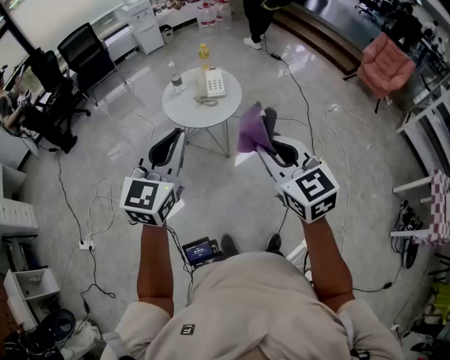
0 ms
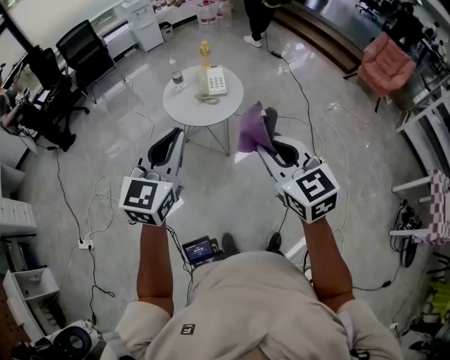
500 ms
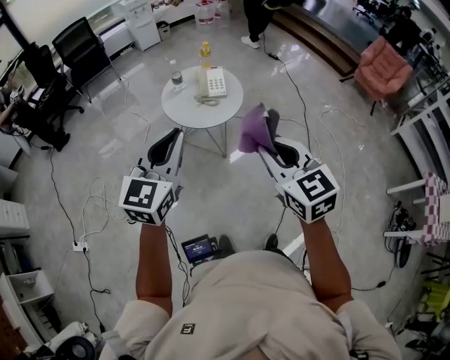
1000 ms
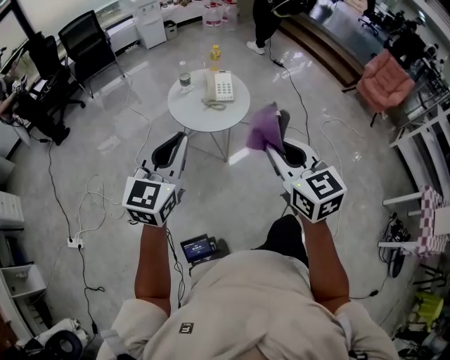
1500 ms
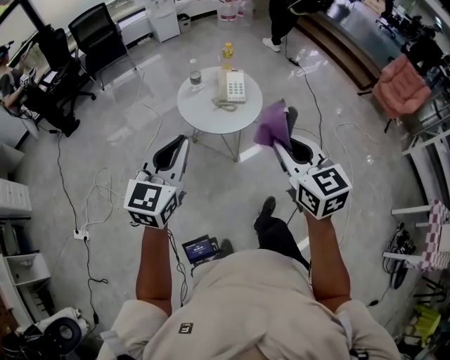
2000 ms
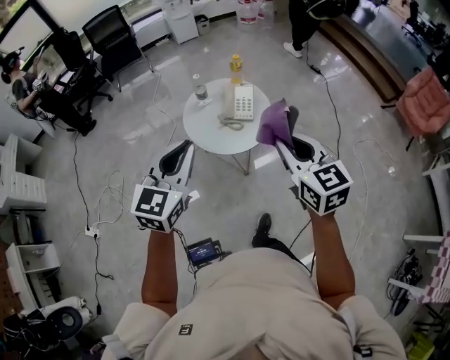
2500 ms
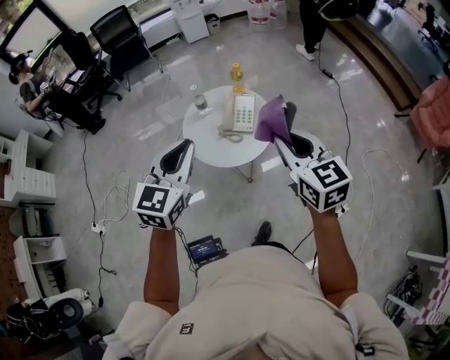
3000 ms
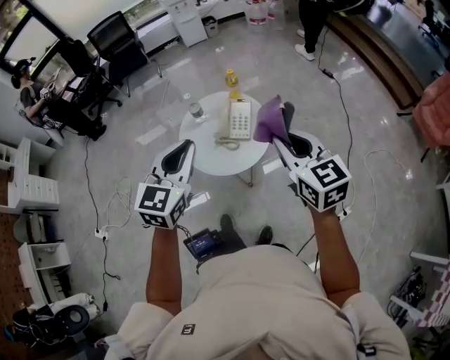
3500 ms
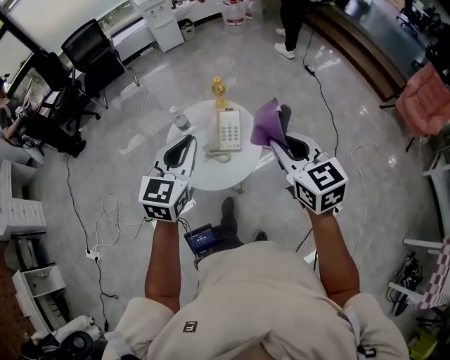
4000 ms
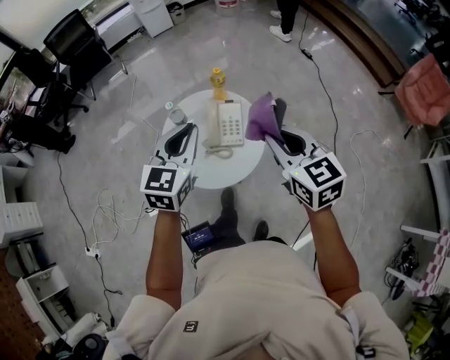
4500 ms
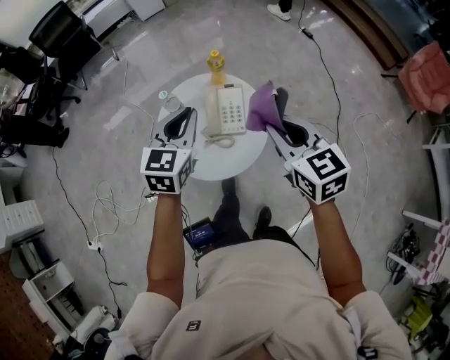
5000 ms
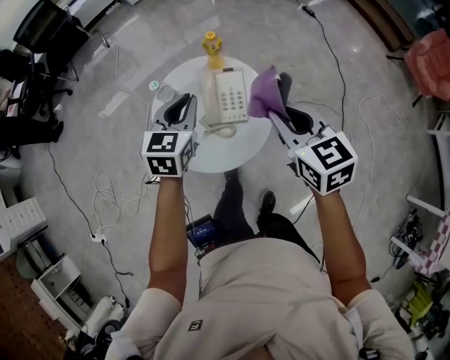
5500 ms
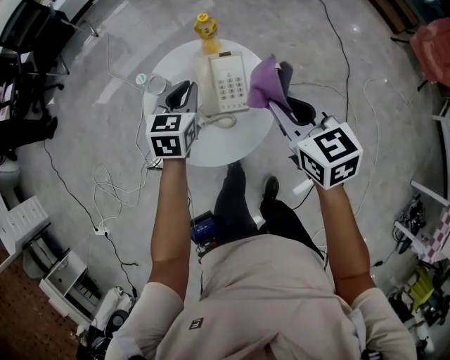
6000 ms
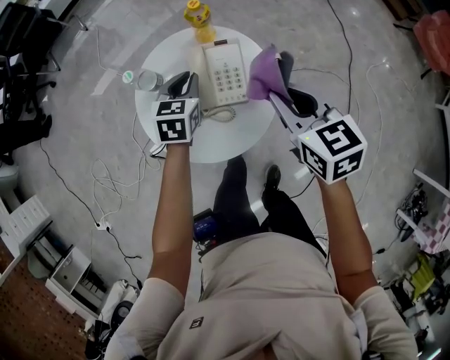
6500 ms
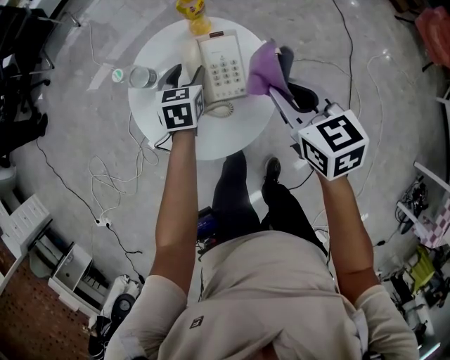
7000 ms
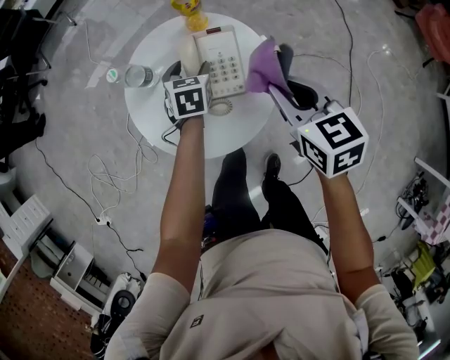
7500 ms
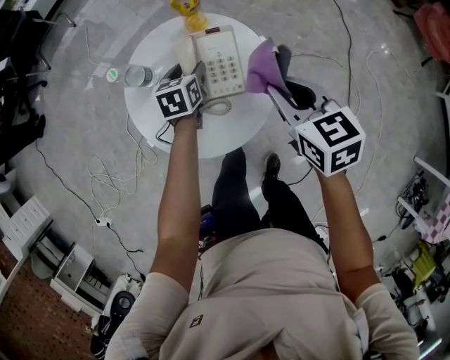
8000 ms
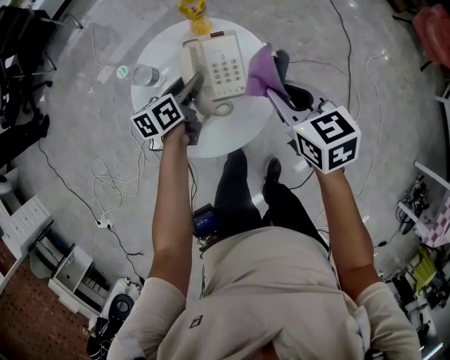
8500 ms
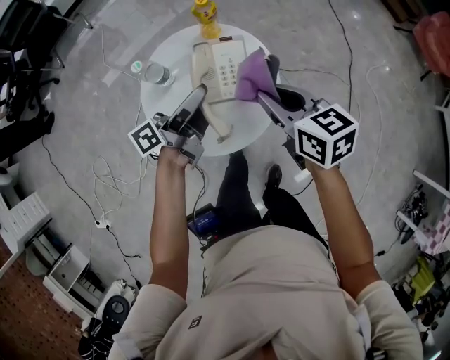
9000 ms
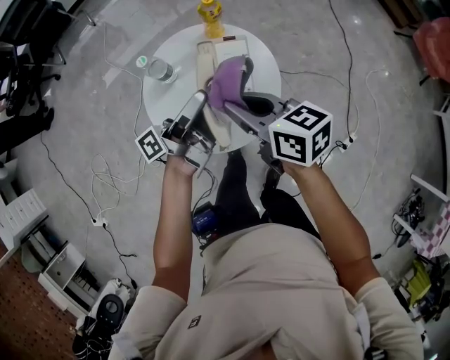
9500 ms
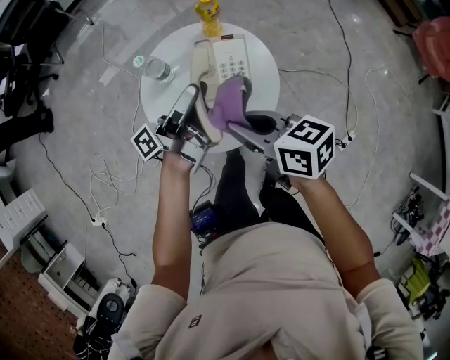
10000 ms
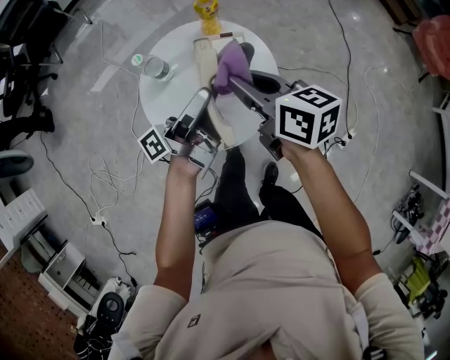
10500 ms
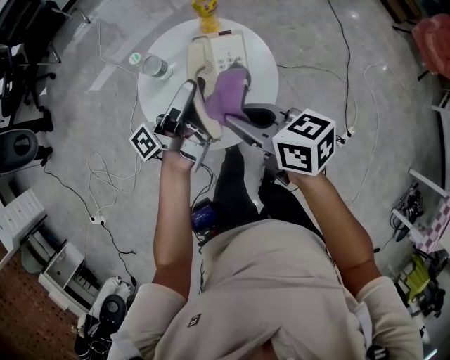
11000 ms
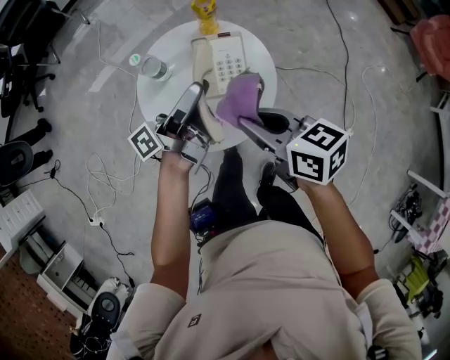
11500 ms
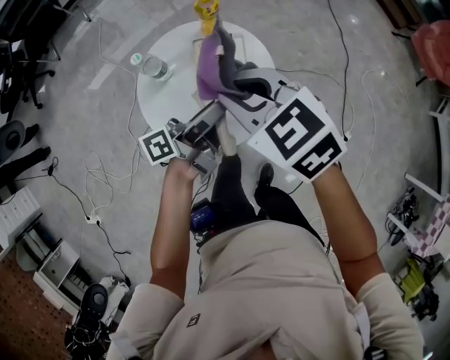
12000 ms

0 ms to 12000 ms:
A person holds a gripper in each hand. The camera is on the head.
0 ms to 2000 ms: The right gripper shifts some 10 cm forward, while the left gripper heads forward and to the left, covering about 10 cm.
2000 ms to 4000 ms: The two grippers go some 35 cm forward and to the right.
4000 ms to 6000 ms: The two grippers go approximately 25 cm downward and forward. The left gripper swivels some 20 degrees.
6000 ms to 8000 ms: The right gripper travels downward by approximately 10 cm, while the left gripper moves downward, about 15 cm, and opens.
8000 ms to 10000 ms: The right gripper travels to the left and backward by approximately 15 cm, and turns by roughly 30 degrees. The left gripper shifts roughly 20 cm upward and backward, and tilts its fingers roughly 70 degrees upward.
10000 ms to 12000 ms: The left gripper goes approximately 5 cm backward. Meanwhile the right gripper goes forward and backward, approximately 10 cm each way, reversing 2 times, and rotates some 40 degrees.

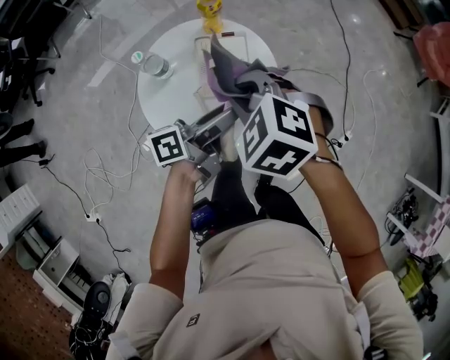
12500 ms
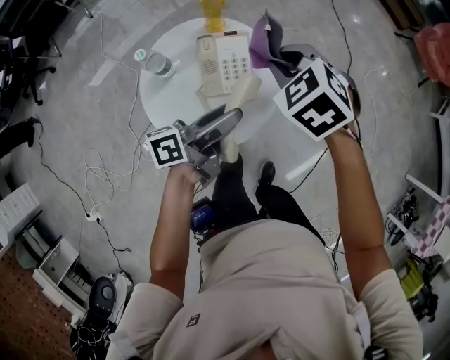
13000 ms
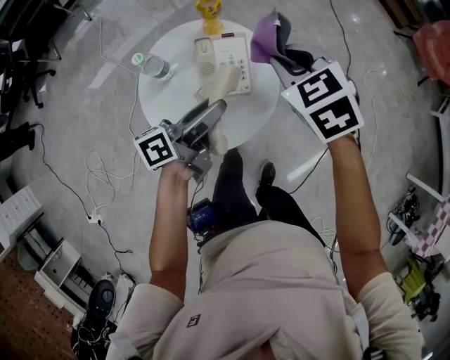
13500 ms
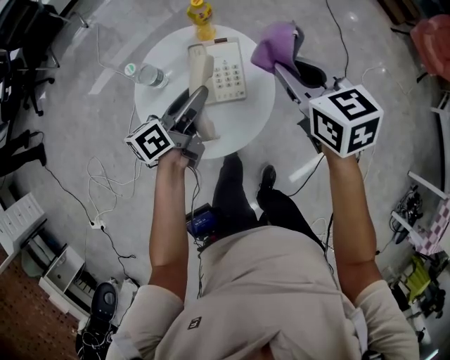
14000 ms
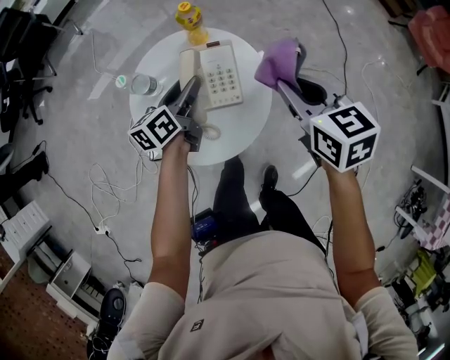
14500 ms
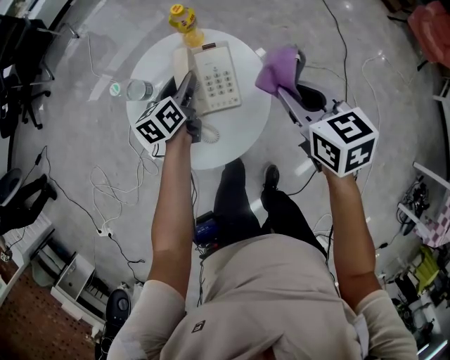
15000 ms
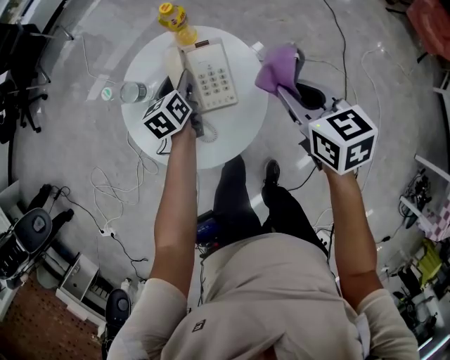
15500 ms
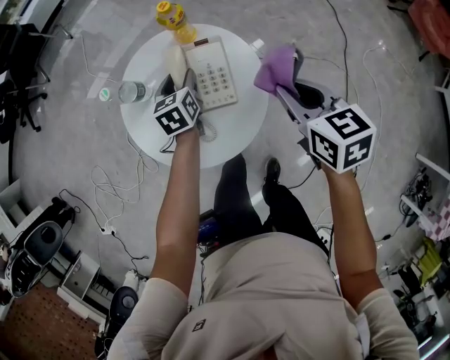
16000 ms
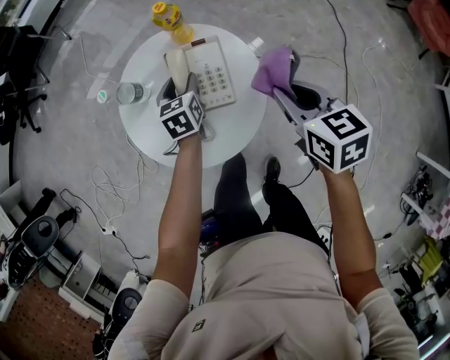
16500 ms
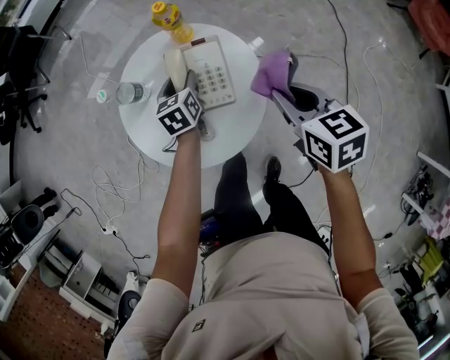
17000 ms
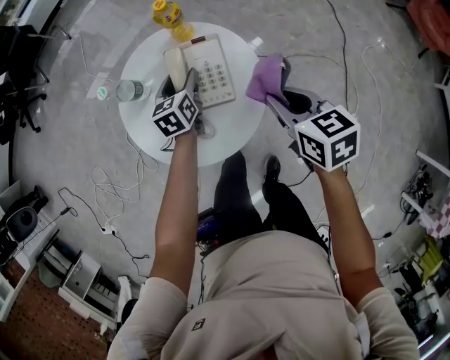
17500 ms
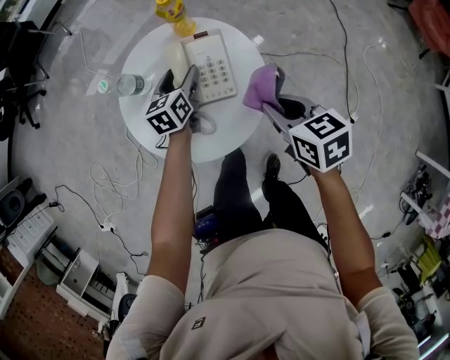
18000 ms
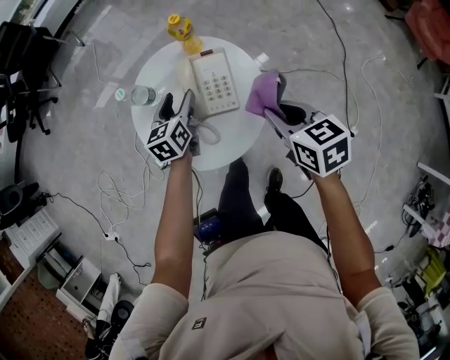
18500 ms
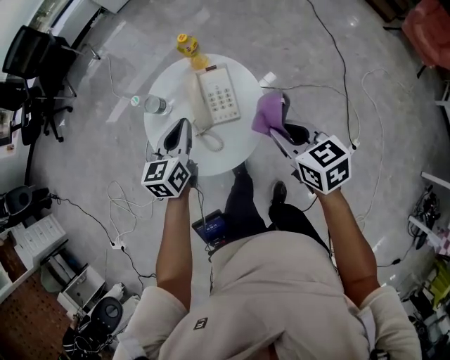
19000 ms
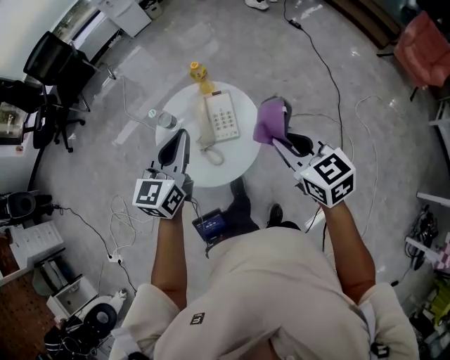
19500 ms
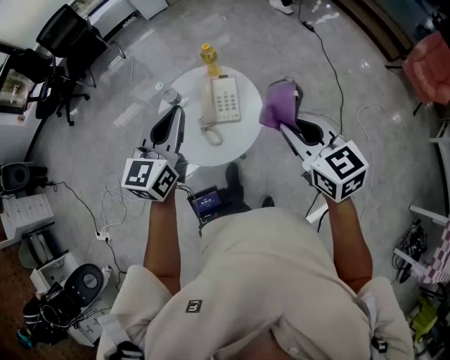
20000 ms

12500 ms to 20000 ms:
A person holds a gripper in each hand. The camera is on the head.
12500 ms to 14500 ms: The left gripper moves forward, downward and to the left, roughly 15 cm, and rotates approximately 40 degrees, while the right gripper travels to the right and forward by roughly 15 cm, and rotates around the line of its fingers by approximately 50 degrees, clockwise from behind.
14500 ms to 16500 ms: The two grippers go roughly 5 cm downward. The left gripper turns by about 40 degrees.
16500 ms to 18000 ms: The right gripper moves roughly 5 cm.
18000 ms to 20000 ms: The left gripper shifts approximately 40 cm upward and backward, rotates approximately 40 degrees, and closes its fingers, while the right gripper goes approximately 25 cm upward, and swivels about 30 degrees.

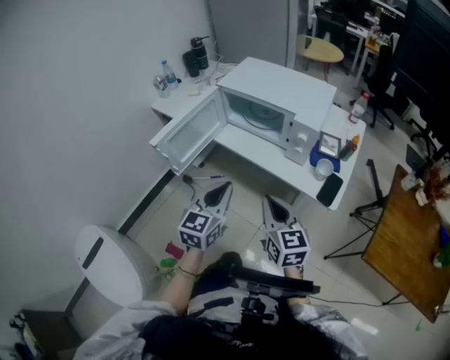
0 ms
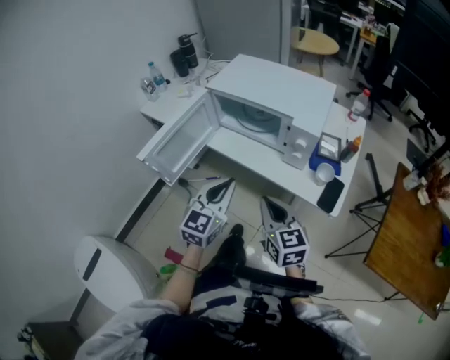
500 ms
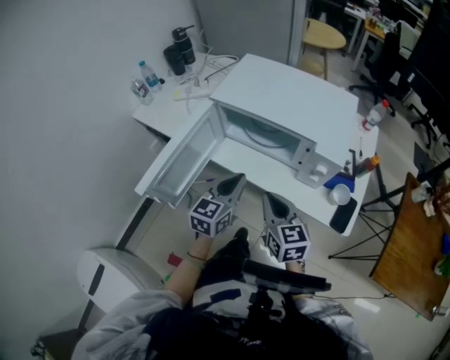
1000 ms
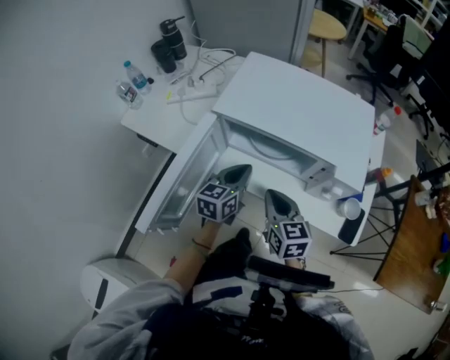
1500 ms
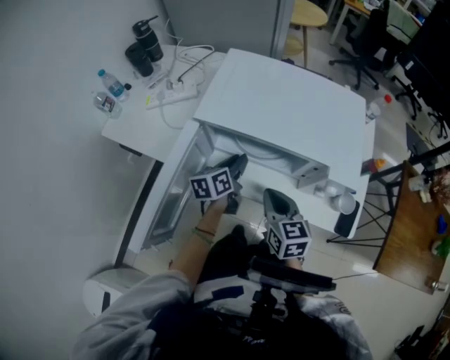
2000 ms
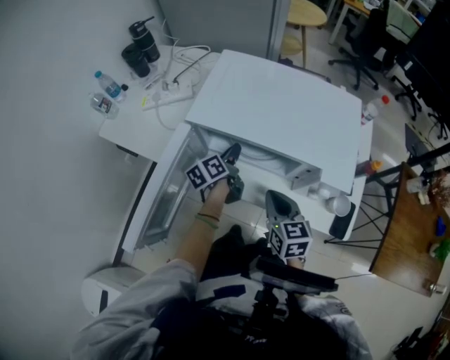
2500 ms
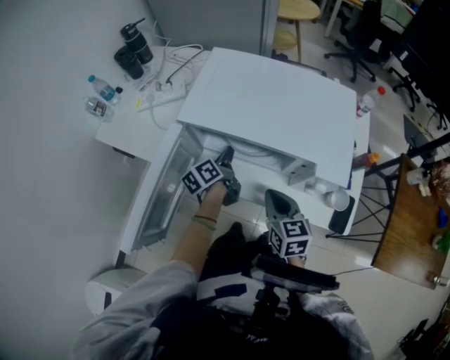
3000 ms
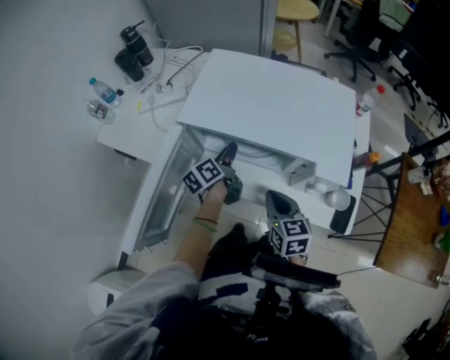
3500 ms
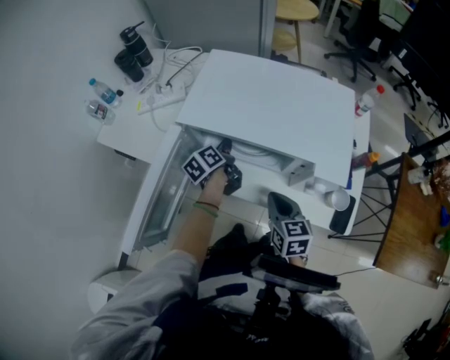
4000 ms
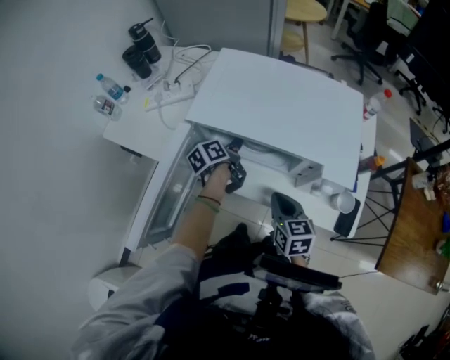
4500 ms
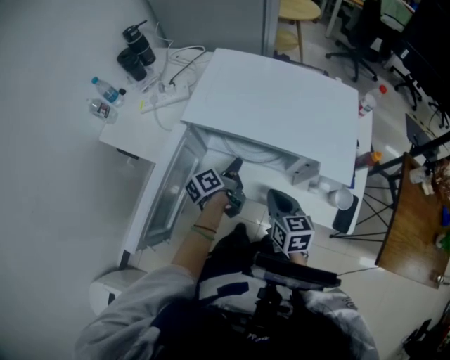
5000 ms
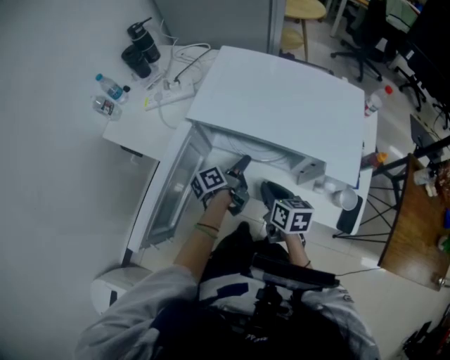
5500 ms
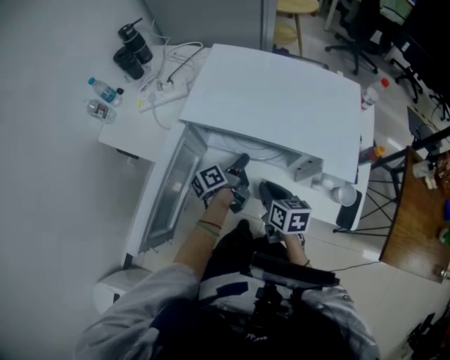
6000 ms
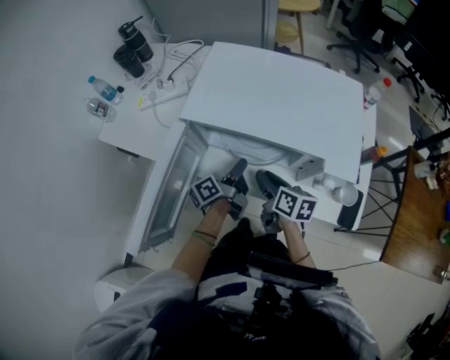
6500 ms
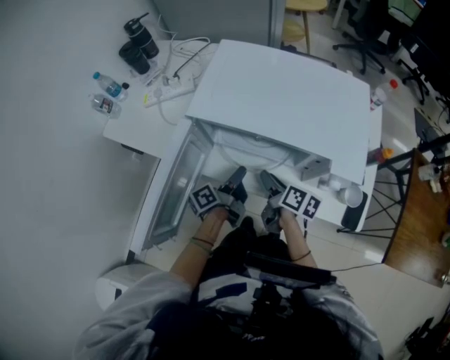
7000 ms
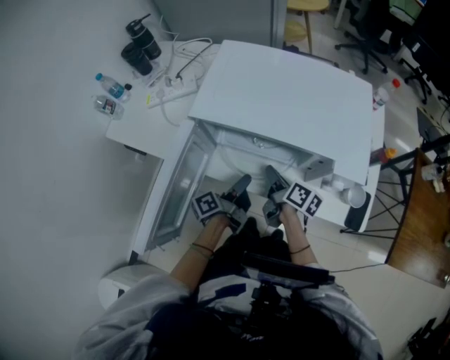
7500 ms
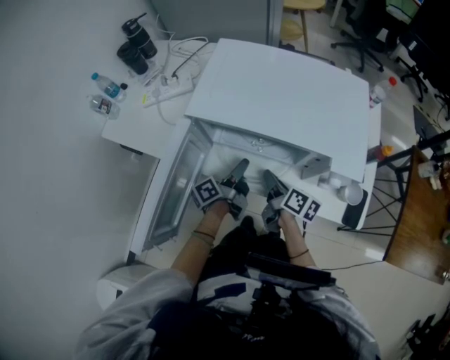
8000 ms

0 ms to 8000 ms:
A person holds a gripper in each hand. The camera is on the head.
0 ms to 2000 ms: The left gripper heads forward and downward, covering roughly 40 cm, swivels approximately 40 degrees, and opens up; the right gripper travels forward by approximately 30 cm.
2000 ms to 4000 ms: The left gripper is displaced forward by about 5 cm, swivels approximately 30 degrees, and closes, while the right gripper is displaced to the right by about 5 cm.
4000 ms to 6000 ms: The left gripper shifts roughly 10 cm backward and to the right, changes its angle by roughly 20 degrees, and opens, then closes again. The right gripper moves some 5 cm.
6000 ms to 8000 ms: The right gripper changes its angle by roughly 30 degrees. The left gripper opens its fingers.
